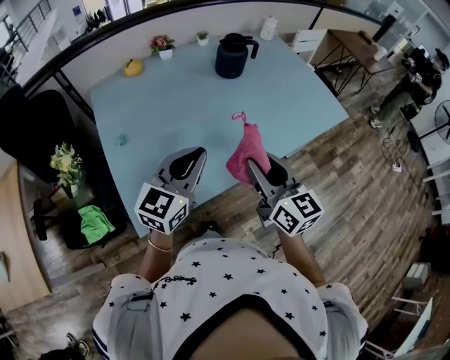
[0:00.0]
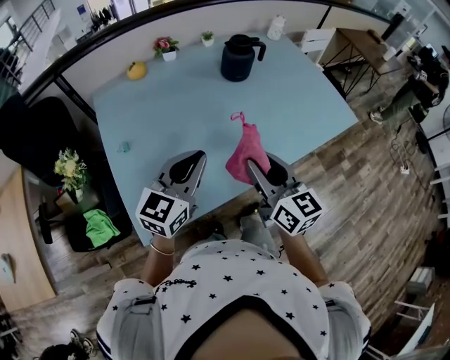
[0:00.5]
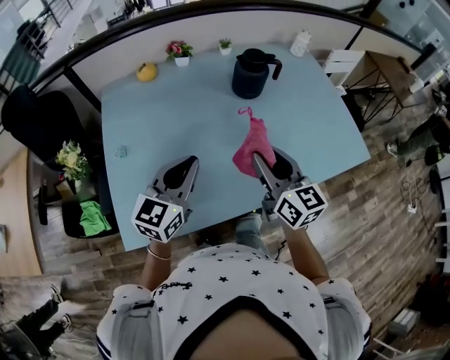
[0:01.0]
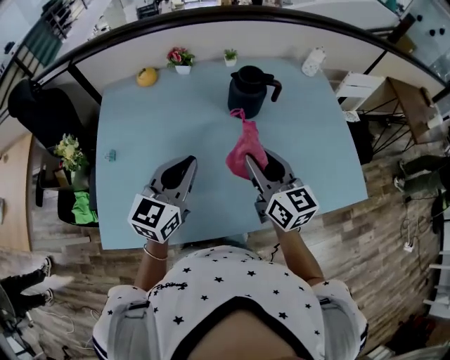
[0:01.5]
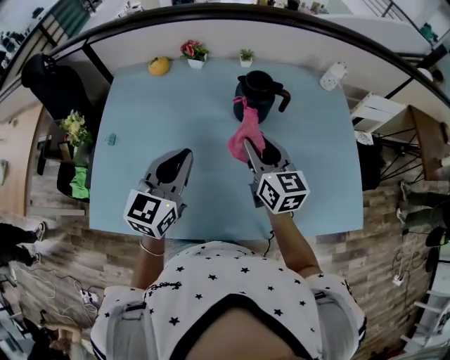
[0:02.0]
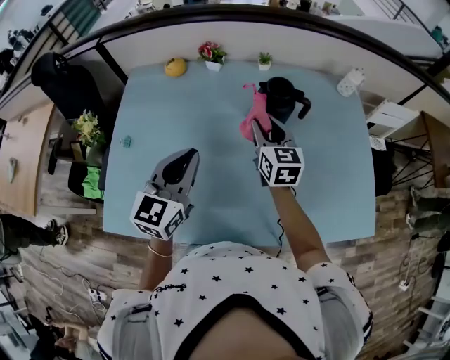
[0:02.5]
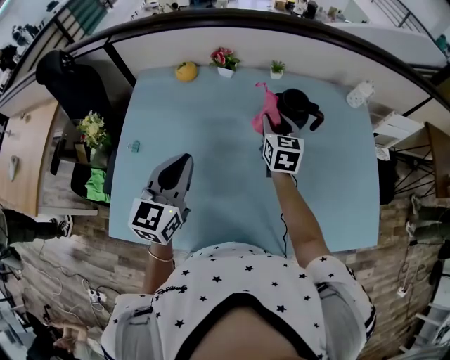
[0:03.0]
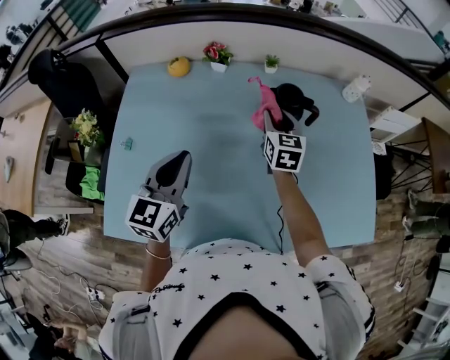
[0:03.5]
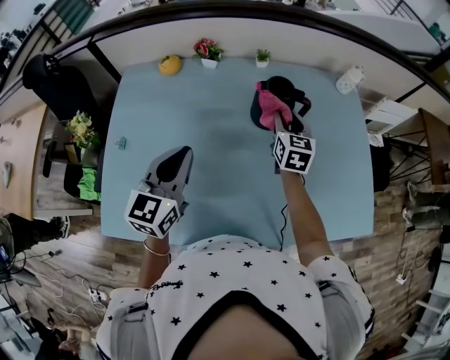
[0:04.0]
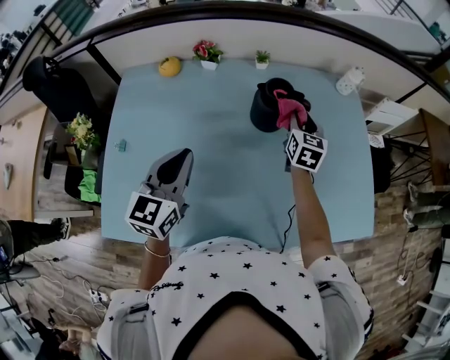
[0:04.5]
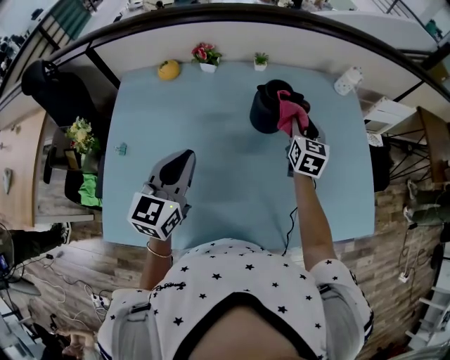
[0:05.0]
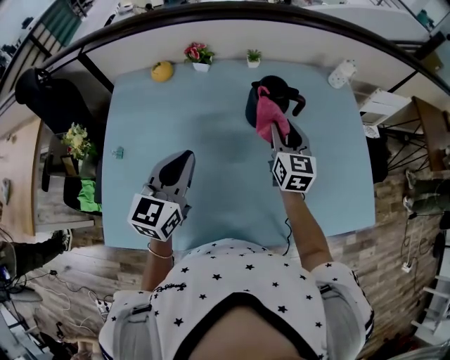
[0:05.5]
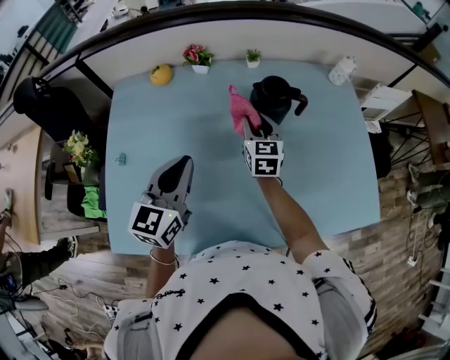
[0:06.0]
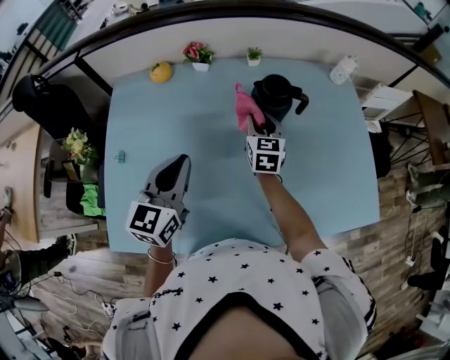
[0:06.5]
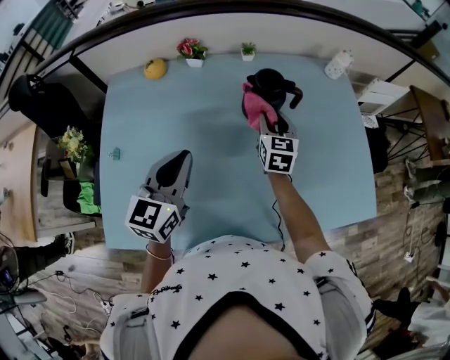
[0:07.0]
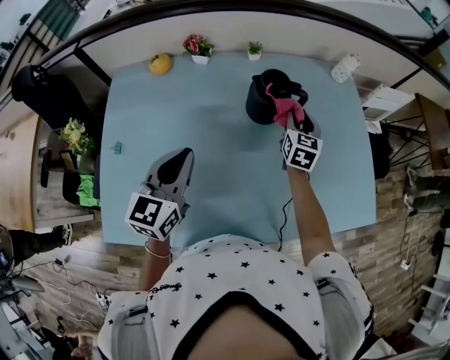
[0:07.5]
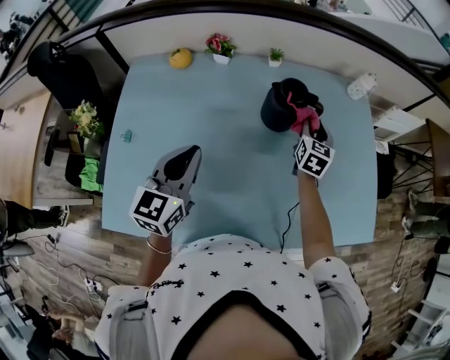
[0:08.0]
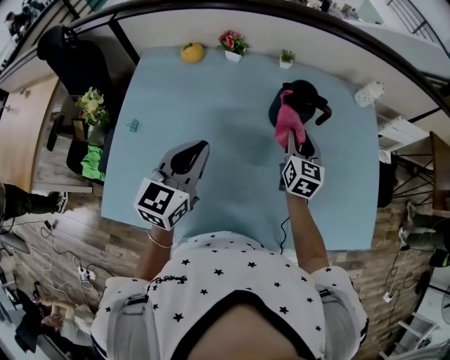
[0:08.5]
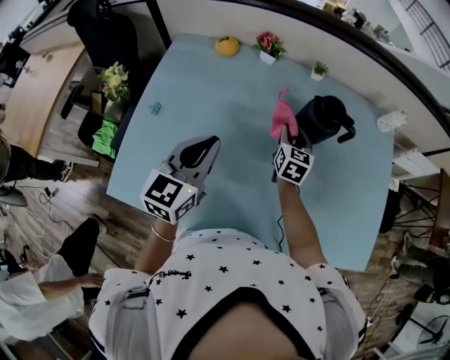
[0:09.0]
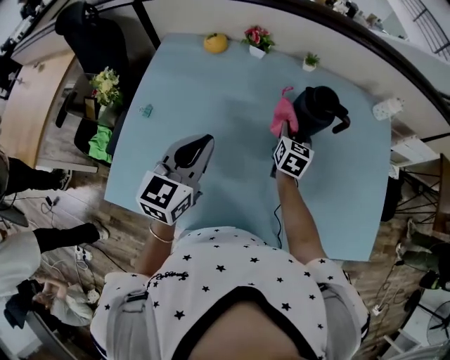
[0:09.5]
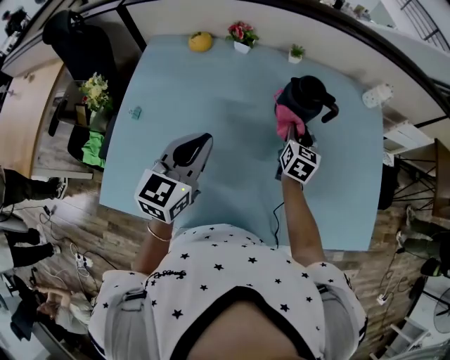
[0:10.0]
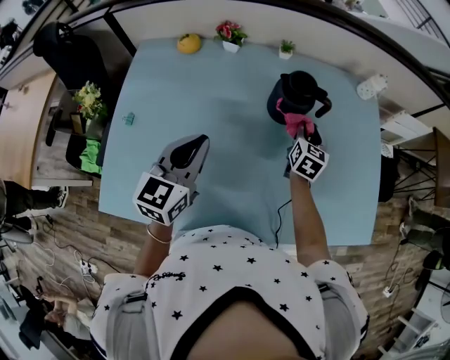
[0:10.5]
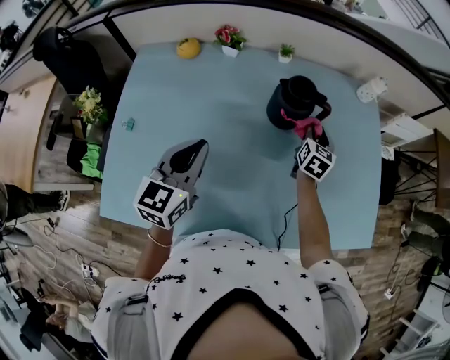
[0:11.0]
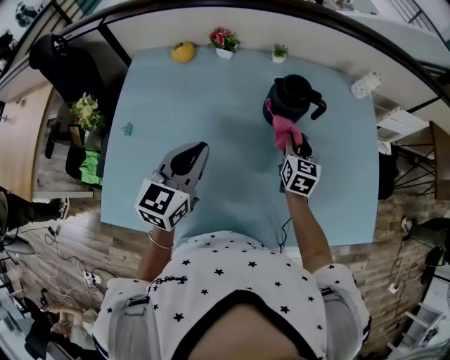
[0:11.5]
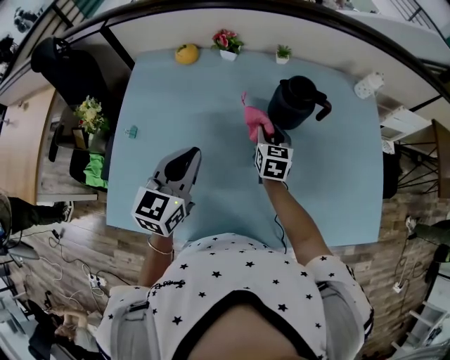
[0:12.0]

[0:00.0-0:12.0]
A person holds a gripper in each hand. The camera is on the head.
0:00.0 to 0:02.0: The left gripper moves roughly 25 cm, and swivels some 40 degrees, while the right gripper changes place by about 35 cm, and changes its angle by about 20 degrees.
0:02.0 to 0:04.0: The left gripper travels to the left by about 5 cm. Meanwhile the right gripper travels forward by about 15 cm, and swivels about 20 degrees.
0:04.0 to 0:06.0: The right gripper is displaced to the left by roughly 10 cm.
0:06.0 to 0:08.0: The right gripper shifts roughly 15 cm to the right.
0:08.0 to 0:10.0: The right gripper moves to the left, about 10 cm.
0:10.0 to 0:12.0: The right gripper moves to the left, approximately 10 cm.

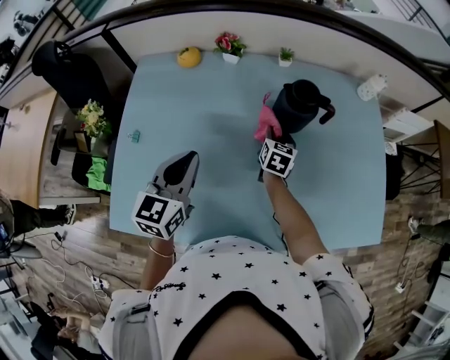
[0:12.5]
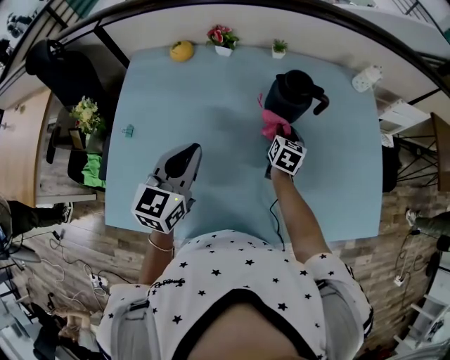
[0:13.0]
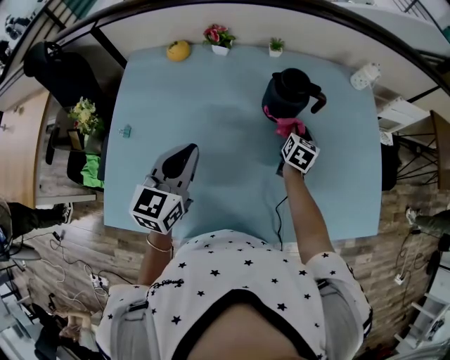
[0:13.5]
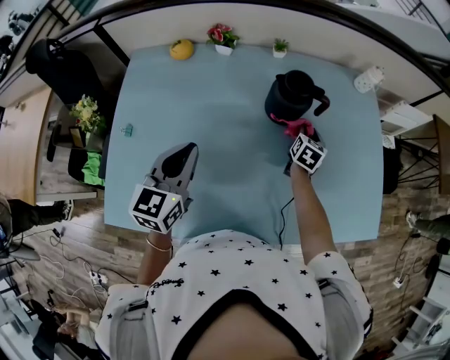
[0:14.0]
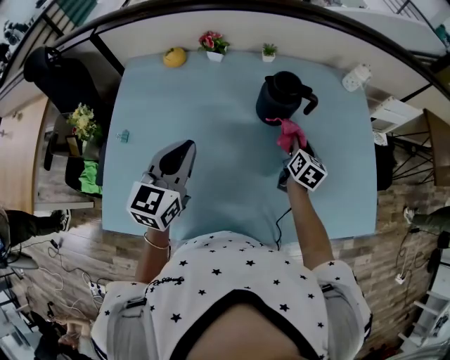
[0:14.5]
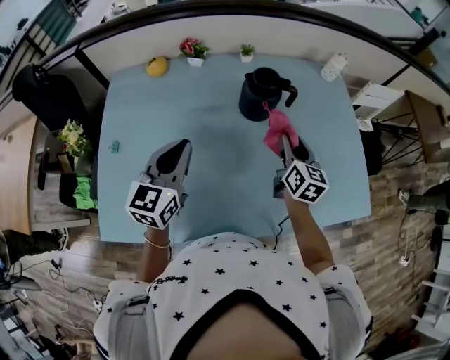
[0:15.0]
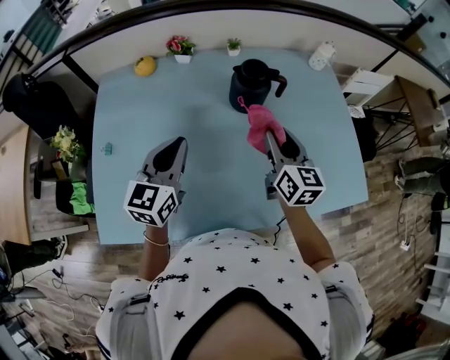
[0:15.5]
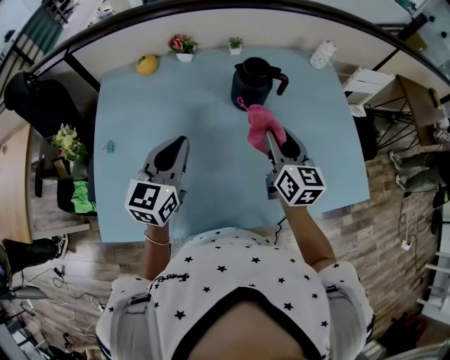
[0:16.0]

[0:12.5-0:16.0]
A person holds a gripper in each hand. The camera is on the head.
0:12.5 to 0:14.5: The right gripper is displaced to the right by roughly 15 cm.
0:14.5 to 0:16.0: The right gripper travels upward and backward by roughly 20 cm, and swivels some 20 degrees.

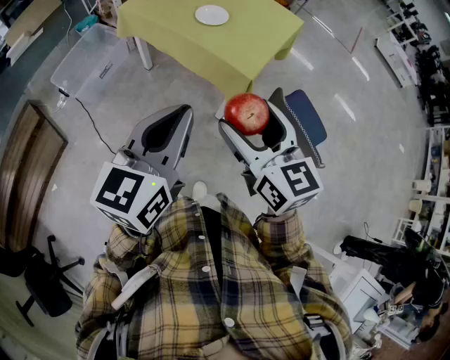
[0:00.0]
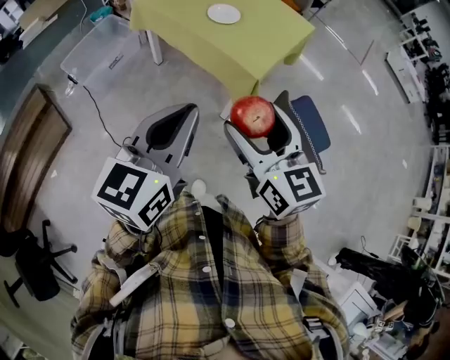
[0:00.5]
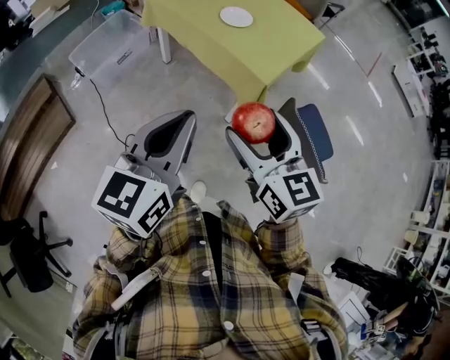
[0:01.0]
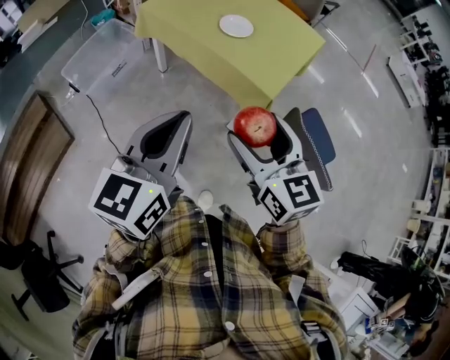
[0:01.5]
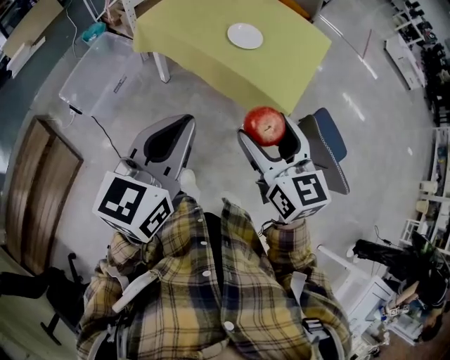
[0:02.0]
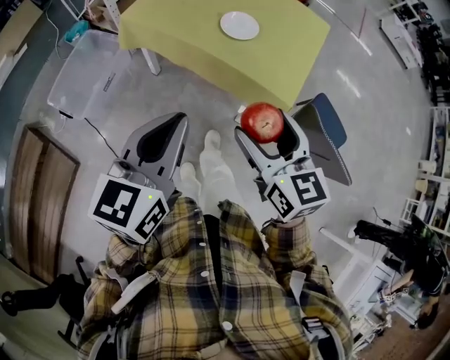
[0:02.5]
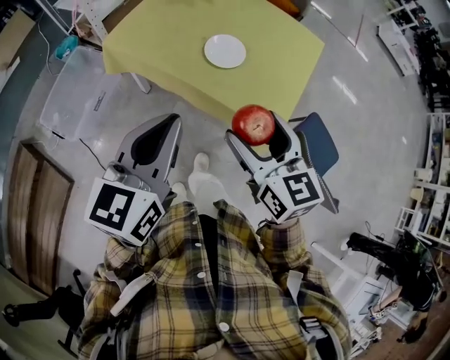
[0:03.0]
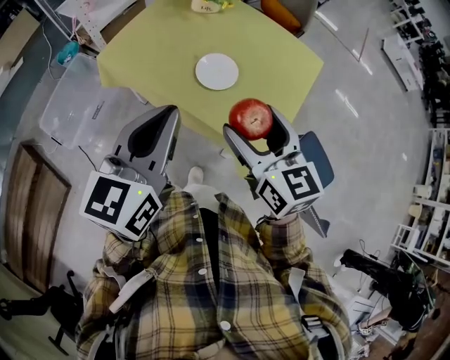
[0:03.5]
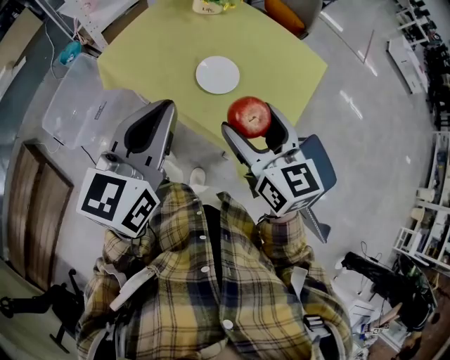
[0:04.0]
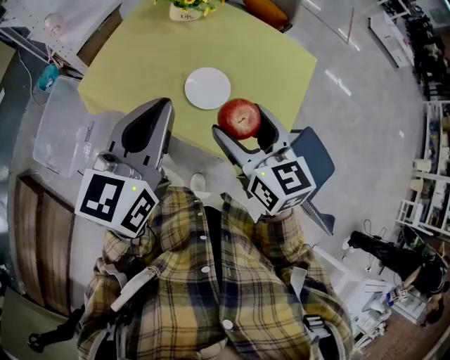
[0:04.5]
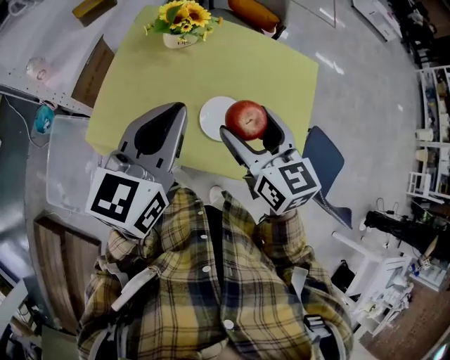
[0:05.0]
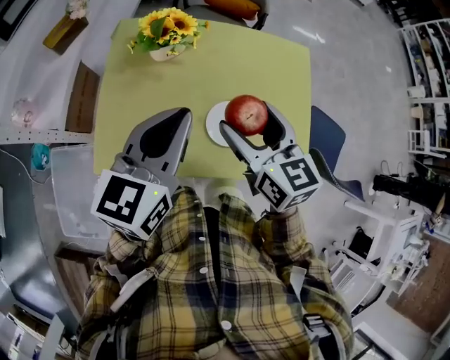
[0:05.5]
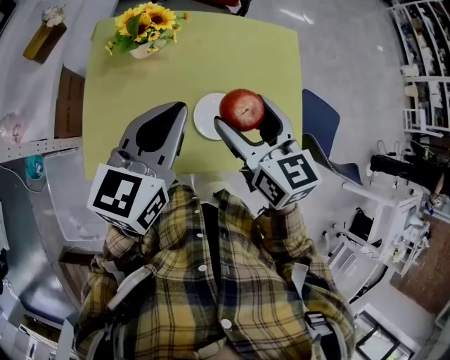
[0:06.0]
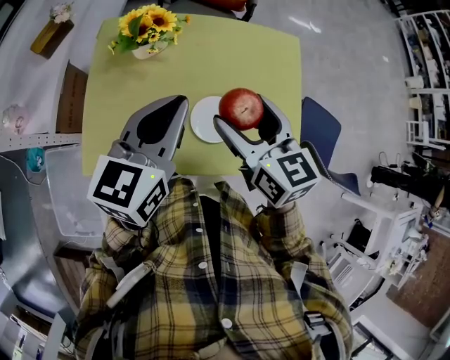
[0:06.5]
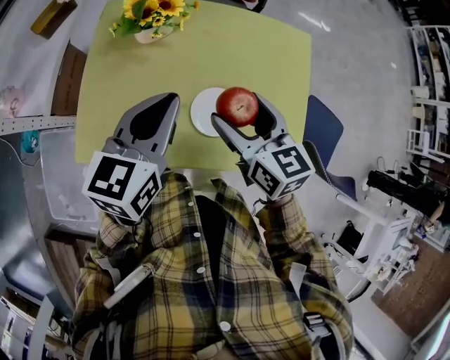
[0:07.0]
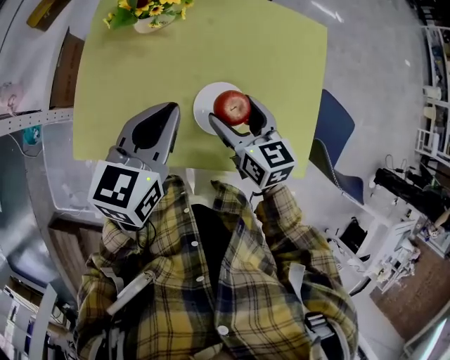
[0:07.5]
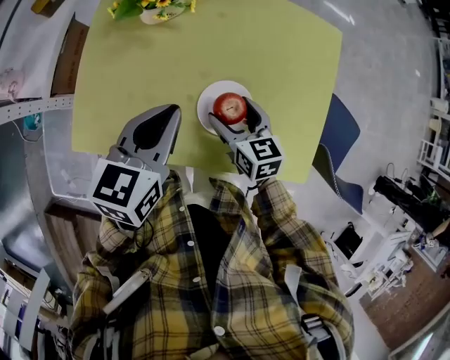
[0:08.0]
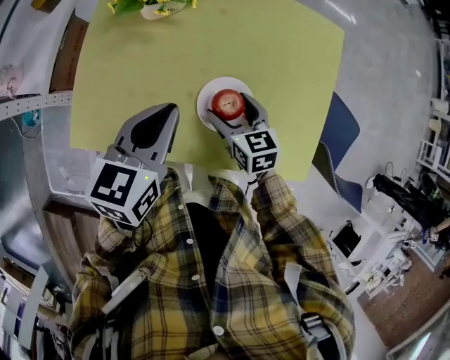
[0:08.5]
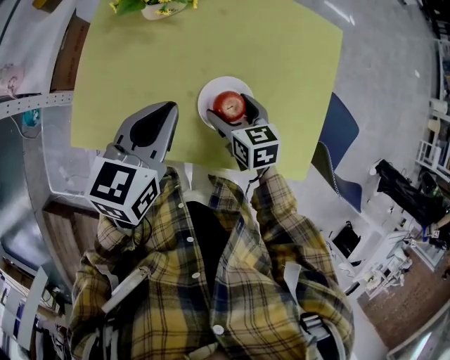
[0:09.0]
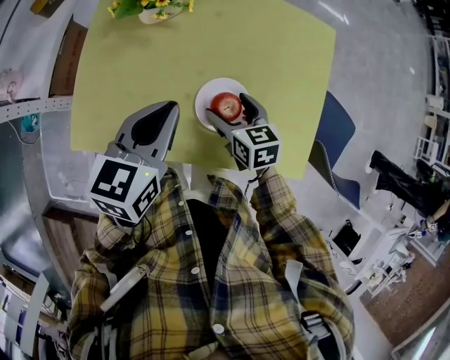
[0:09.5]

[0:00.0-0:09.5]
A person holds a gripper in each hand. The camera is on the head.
0:00.0 to 0:02.0: The right gripper is displaced forward and to the left by some 15 cm; the left gripper heads to the left and forward, covering some 20 cm.
0:02.0 to 0:04.0: The grippers both shift forward by roughly 30 cm.
0:04.0 to 0:05.5: The left gripper shifts by about 25 cm, and swivels about 30 degrees. The right gripper shifts by roughly 25 cm, and rotates approximately 30 degrees.
0:05.5 to 0:07.5: Both grippers move downward, about 15 cm.
0:07.5 to 0:09.5: The right gripper is displaced downward by about 10 cm.

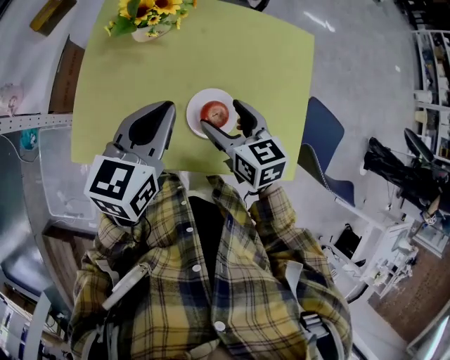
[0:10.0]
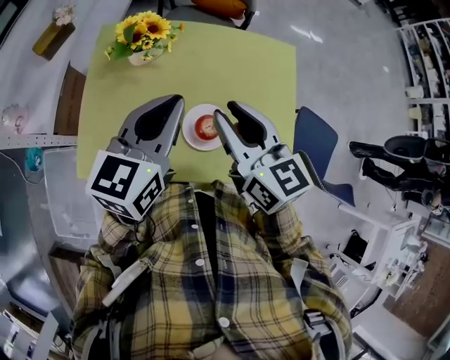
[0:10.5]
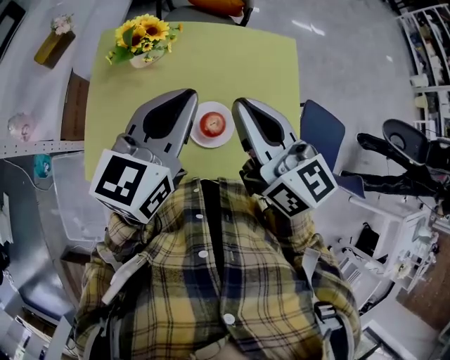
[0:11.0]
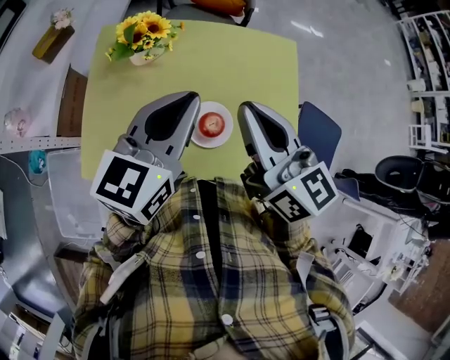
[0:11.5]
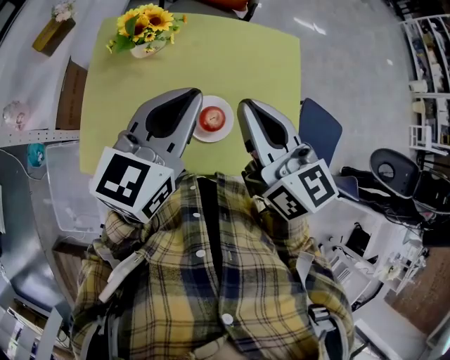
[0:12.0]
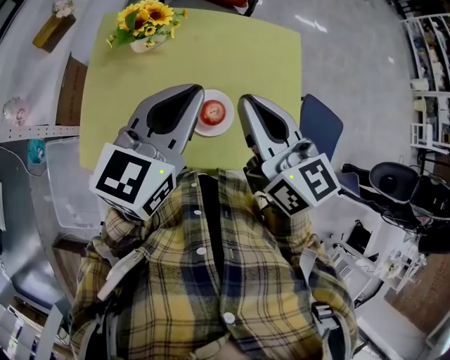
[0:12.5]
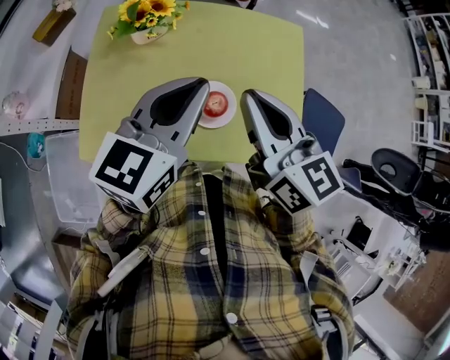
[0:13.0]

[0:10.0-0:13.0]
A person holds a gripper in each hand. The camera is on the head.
0:10.0 to 0:11.5: The left gripper shifts approximately 10 cm upward. Meanwhile the right gripper travels upward by approximately 20 cm, rotates roughly 30 degrees, and closes.
0:11.5 to 0:13.0: The grippers stay close to where they were, moving slightly.
